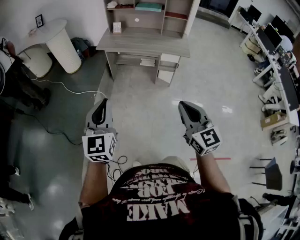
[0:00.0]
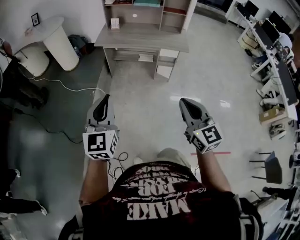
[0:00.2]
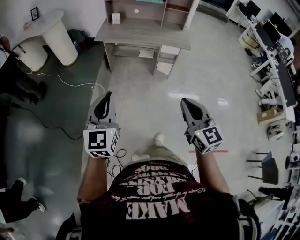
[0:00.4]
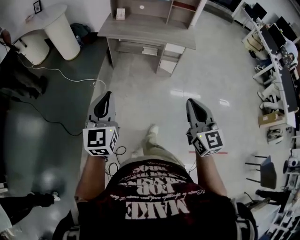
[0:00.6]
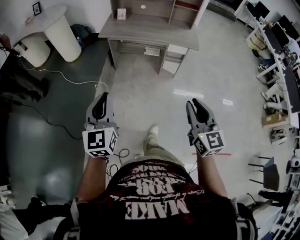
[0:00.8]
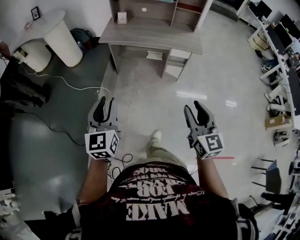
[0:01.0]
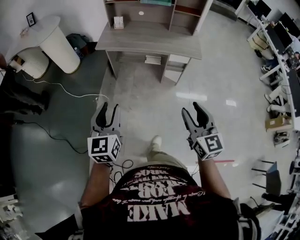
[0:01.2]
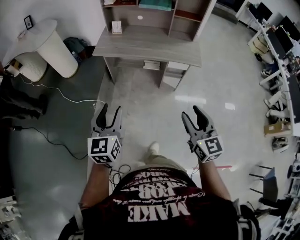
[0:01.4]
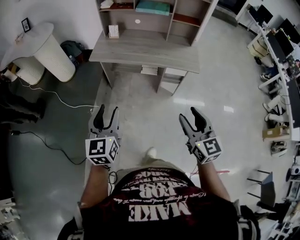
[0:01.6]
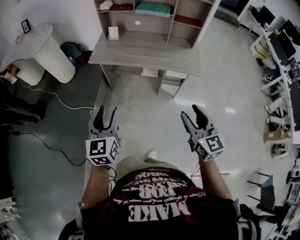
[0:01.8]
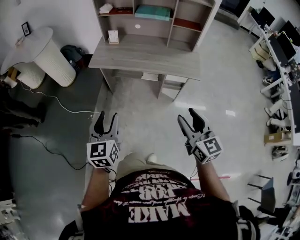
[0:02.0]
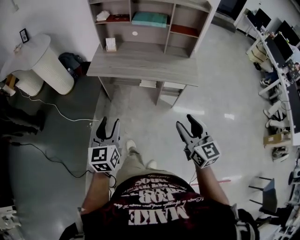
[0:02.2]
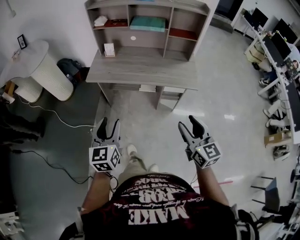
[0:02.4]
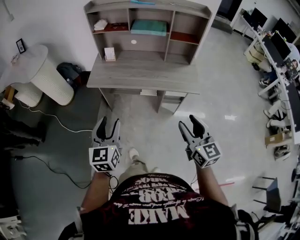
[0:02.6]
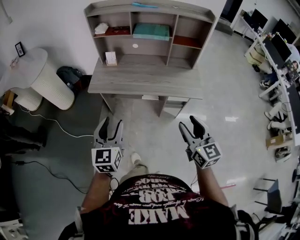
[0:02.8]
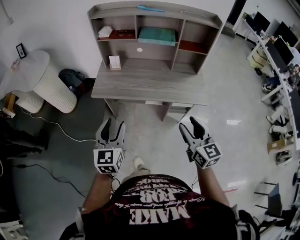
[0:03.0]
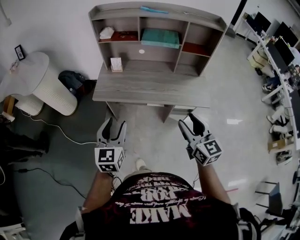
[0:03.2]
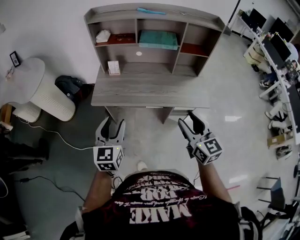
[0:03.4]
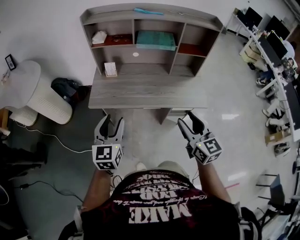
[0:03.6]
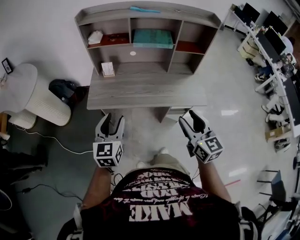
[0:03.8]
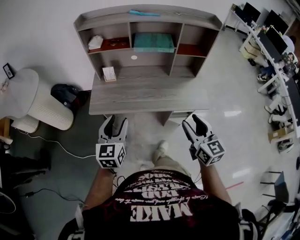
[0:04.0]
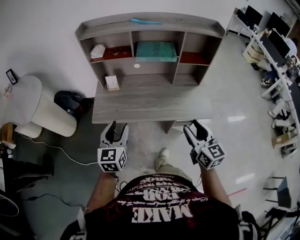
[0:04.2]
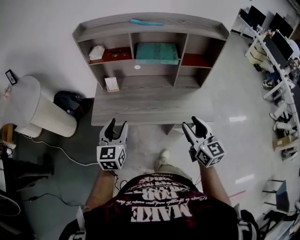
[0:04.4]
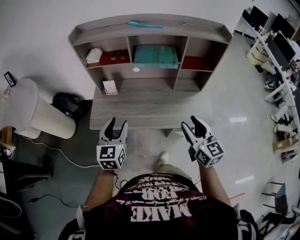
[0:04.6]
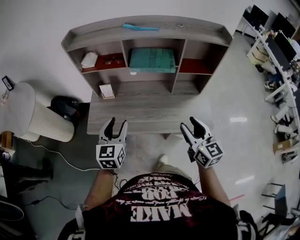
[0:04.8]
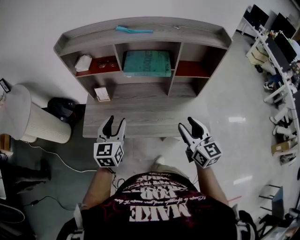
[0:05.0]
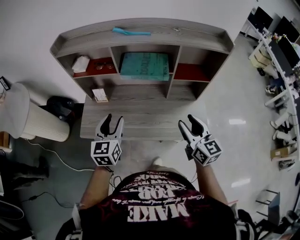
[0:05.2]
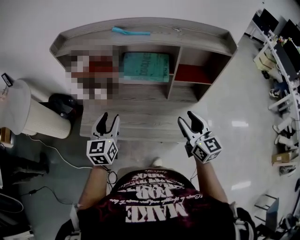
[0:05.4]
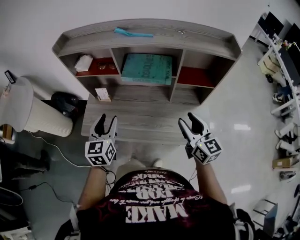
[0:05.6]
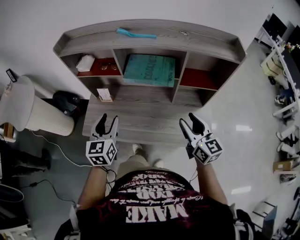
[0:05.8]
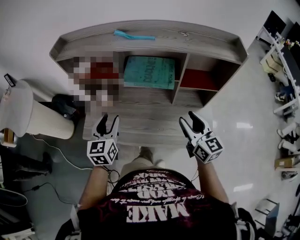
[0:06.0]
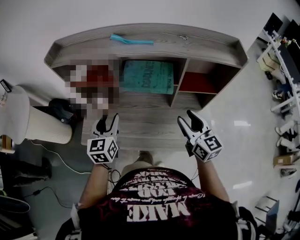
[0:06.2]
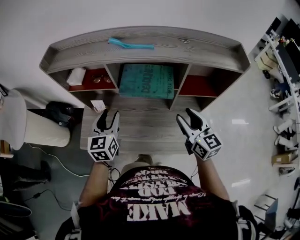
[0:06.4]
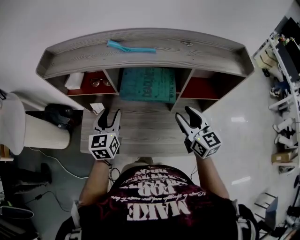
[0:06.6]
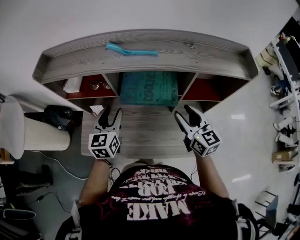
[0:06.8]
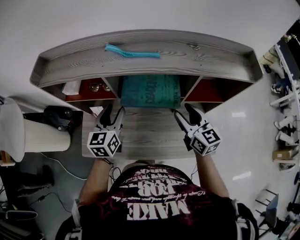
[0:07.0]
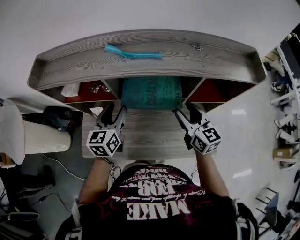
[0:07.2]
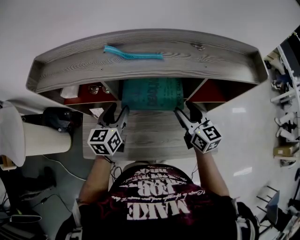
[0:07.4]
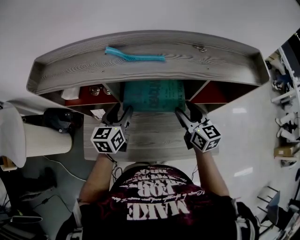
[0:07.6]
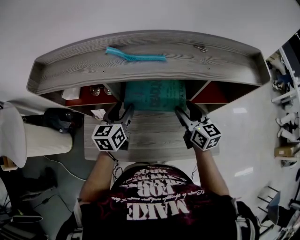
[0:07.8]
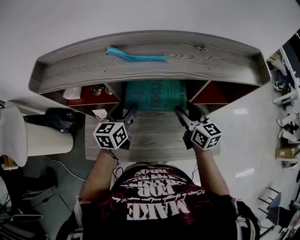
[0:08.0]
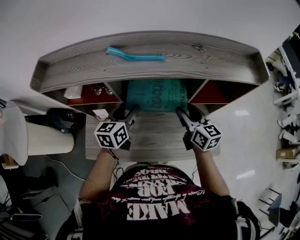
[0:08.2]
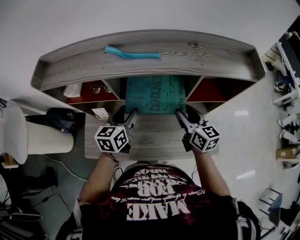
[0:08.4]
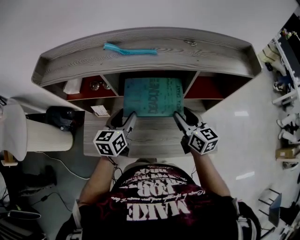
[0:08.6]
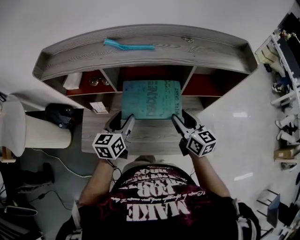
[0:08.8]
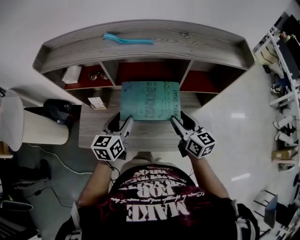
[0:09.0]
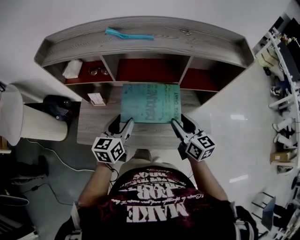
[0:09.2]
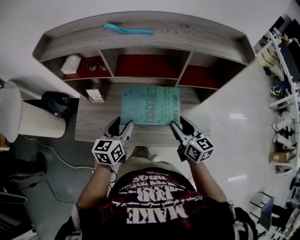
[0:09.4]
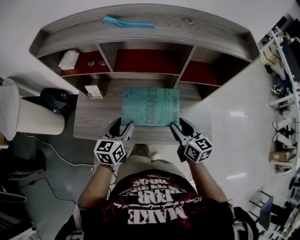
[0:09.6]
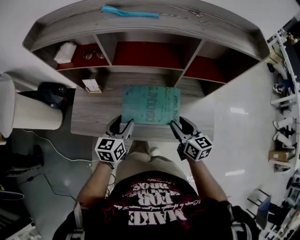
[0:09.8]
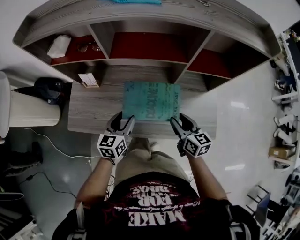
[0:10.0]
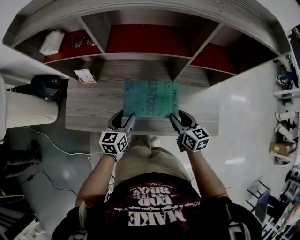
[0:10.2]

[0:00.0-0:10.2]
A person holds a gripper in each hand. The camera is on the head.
0:00.0 to 0:01.4: Both grippers move forward, roughly 20 cm. The left gripper opens its fingers. The right gripper opens its fingers.
0:01.4 to 0:03.0: Both grippers travel together forward, roughly 25 cm.
0:03.0 to 0:04.4: Both grippers travel together forward, roughly 20 cm.
0:04.4 to 0:05.8: Both grippers travel together forward and to the right, approximately 20 cm.
0:05.8 to 0:07.2: The grippers both shift forward by some 20 cm.
0:07.2 to 0:08.8: The grippers both shift backward by about 5 cm.
0:08.8 to 0:10.2: Both grippers travel together downward, about 20 cm.

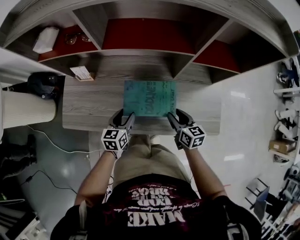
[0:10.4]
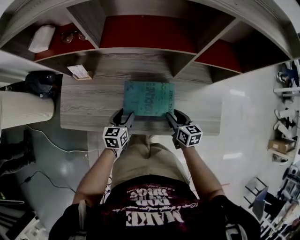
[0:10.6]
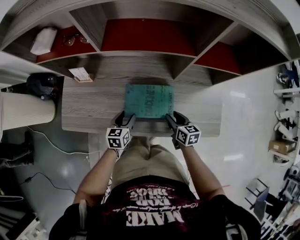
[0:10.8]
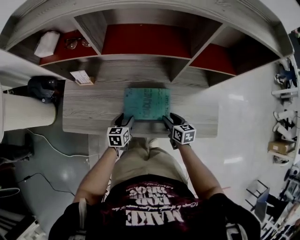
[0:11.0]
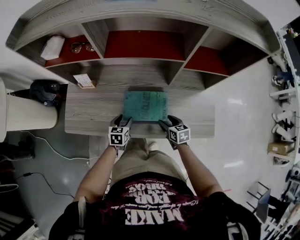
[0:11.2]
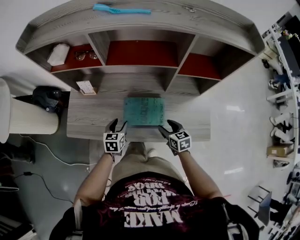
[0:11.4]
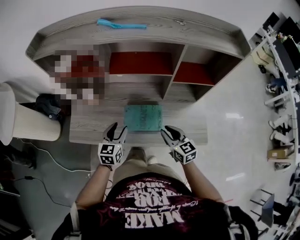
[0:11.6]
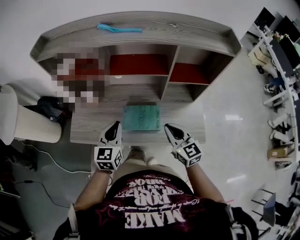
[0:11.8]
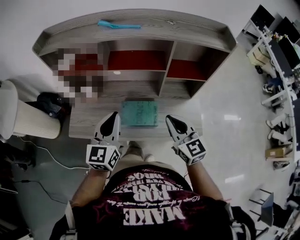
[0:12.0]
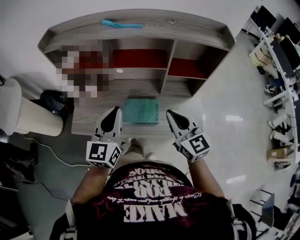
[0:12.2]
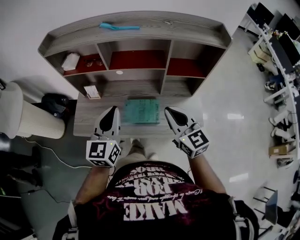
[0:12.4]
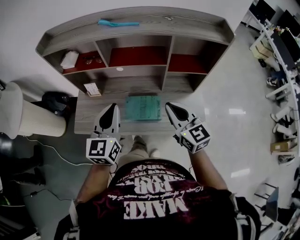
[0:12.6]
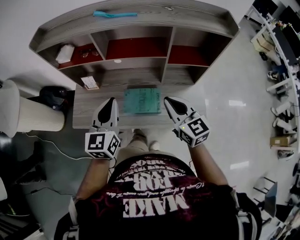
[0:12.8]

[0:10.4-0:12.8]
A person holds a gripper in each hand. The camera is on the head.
0:10.4 to 0:11.6: Both grippers move upward, roughly 10 cm.
0:11.6 to 0:12.8: The grippers both shift upward by approximately 20 cm. The right gripper closes, while the left gripper closes its fingers.

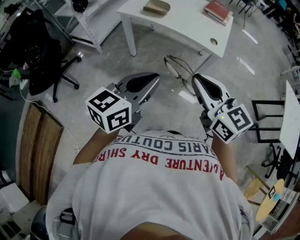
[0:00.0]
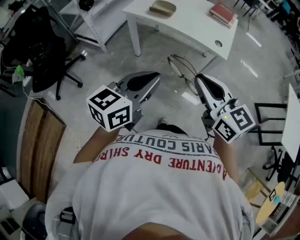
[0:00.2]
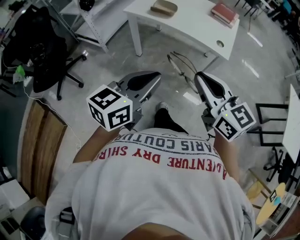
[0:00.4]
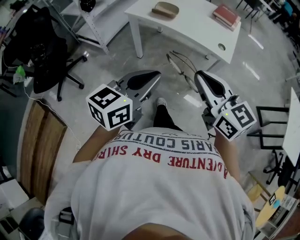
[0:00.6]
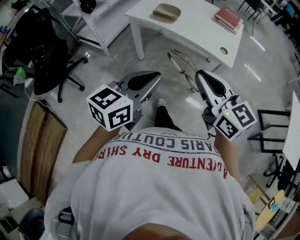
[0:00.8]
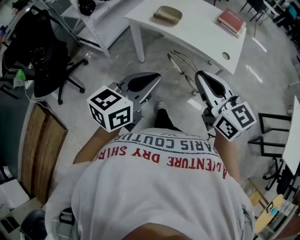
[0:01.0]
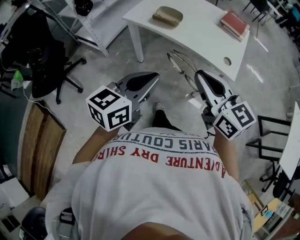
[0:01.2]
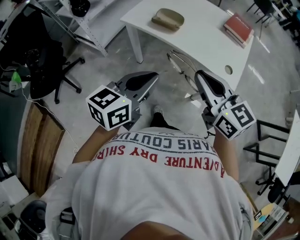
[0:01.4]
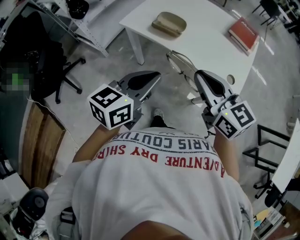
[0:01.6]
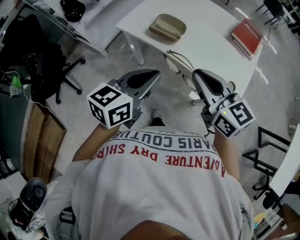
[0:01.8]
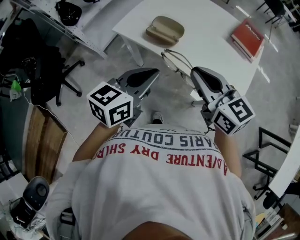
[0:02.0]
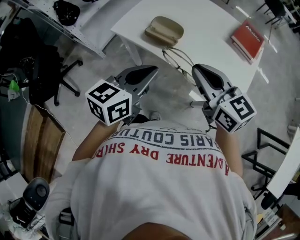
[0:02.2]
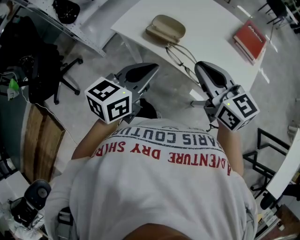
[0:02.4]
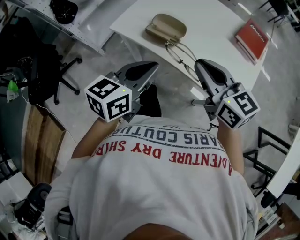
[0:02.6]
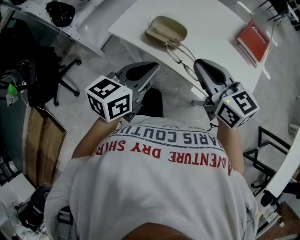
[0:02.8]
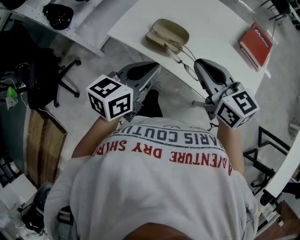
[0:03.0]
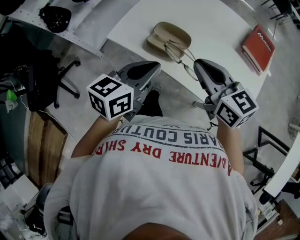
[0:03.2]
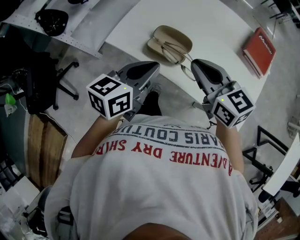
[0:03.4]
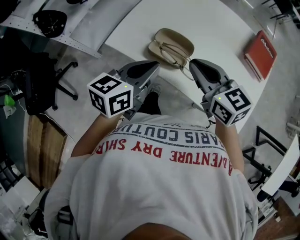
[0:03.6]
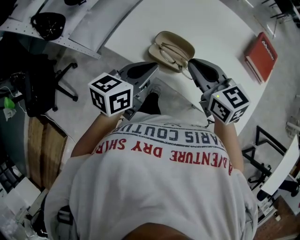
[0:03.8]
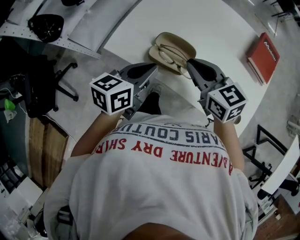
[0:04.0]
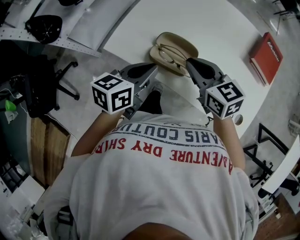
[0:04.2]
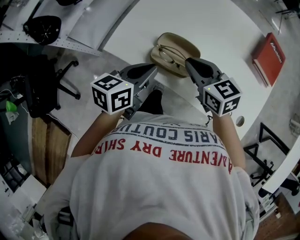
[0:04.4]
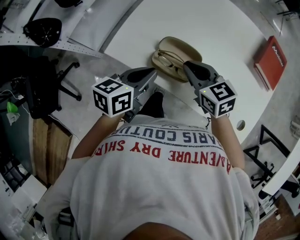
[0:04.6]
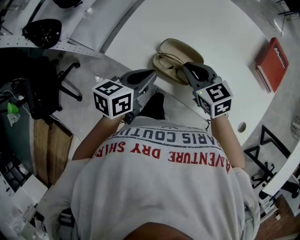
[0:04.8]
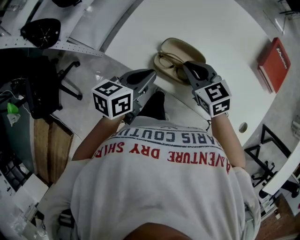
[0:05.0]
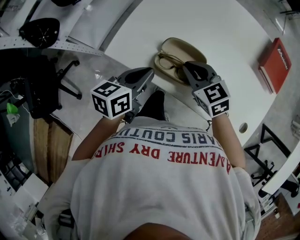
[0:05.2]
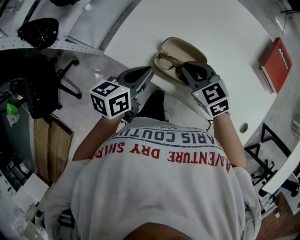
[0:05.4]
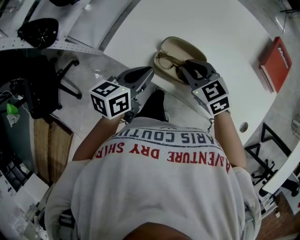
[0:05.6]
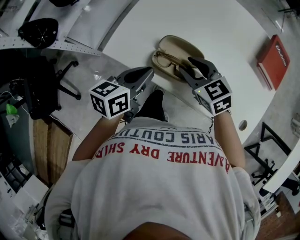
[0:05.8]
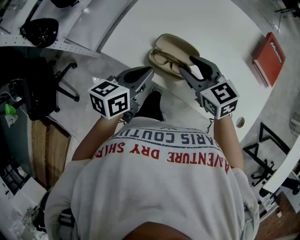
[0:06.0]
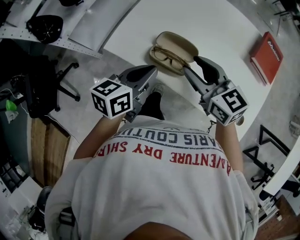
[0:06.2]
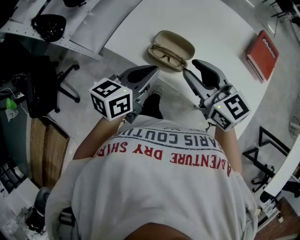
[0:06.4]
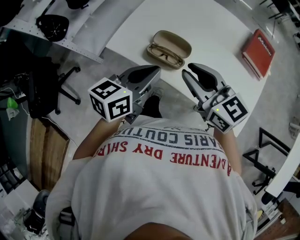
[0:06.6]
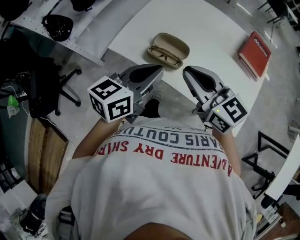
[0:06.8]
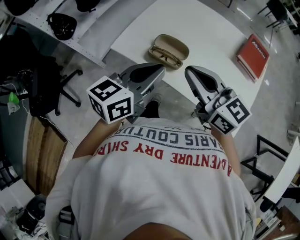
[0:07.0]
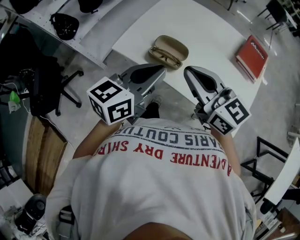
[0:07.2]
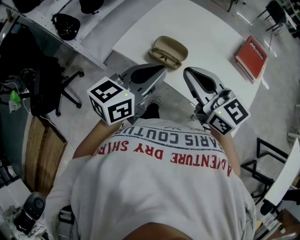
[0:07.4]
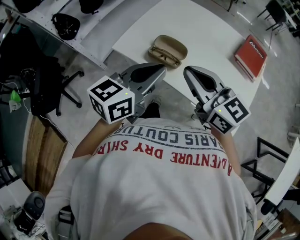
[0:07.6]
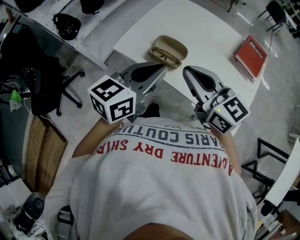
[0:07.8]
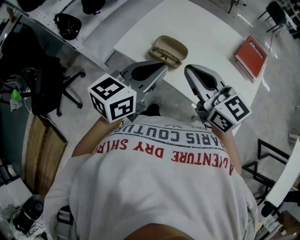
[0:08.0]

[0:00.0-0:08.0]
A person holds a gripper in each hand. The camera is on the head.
0:00.0 to 0:01.6: The two grippers go approximately 25 cm forward.
0:01.6 to 0:03.2: Both grippers move forward, some 20 cm.
0:03.2 to 0:04.8: The grippers both shift downward and forward by about 15 cm.
0:04.8 to 0:06.4: The right gripper is displaced upward and backward by some 15 cm, swivels roughly 20 degrees, and opens its fingers. Meanwhile the left gripper heads upward, covering roughly 5 cm.
0:06.4 to 0:08.0: Both grippers travel together upward and backward, some 15 cm. The right gripper closes up.

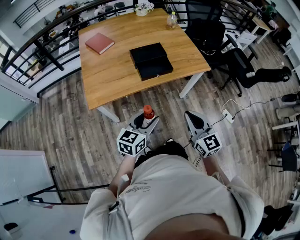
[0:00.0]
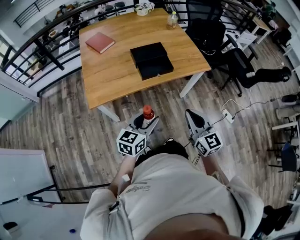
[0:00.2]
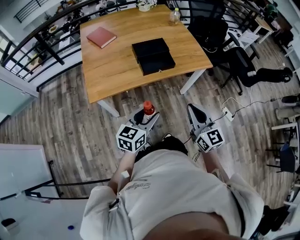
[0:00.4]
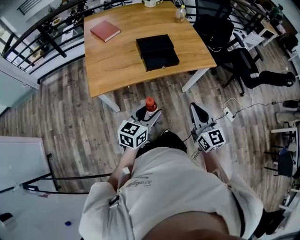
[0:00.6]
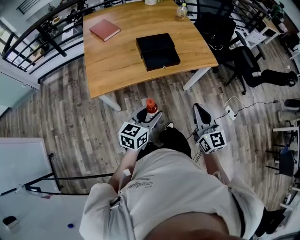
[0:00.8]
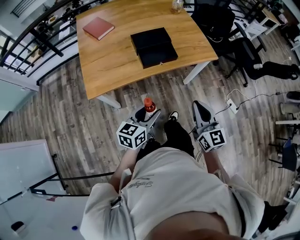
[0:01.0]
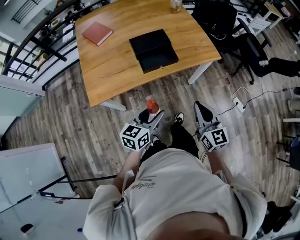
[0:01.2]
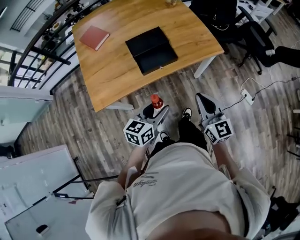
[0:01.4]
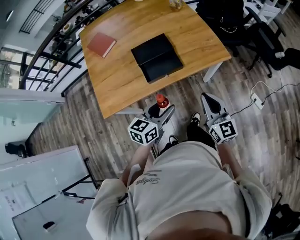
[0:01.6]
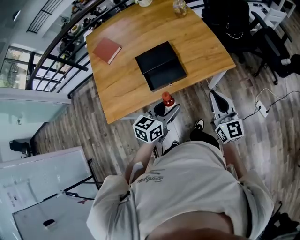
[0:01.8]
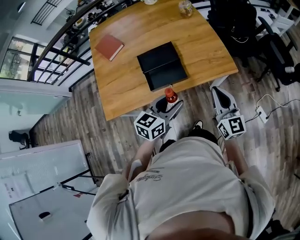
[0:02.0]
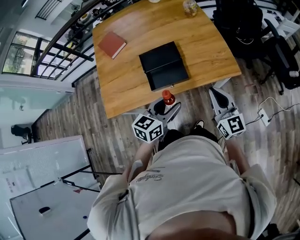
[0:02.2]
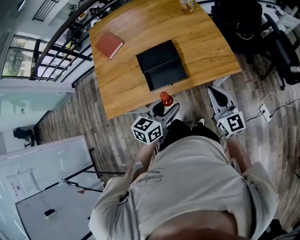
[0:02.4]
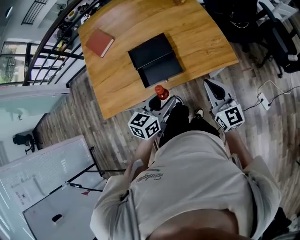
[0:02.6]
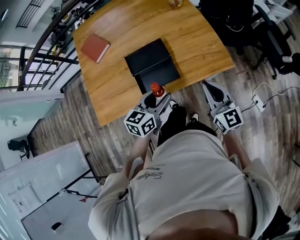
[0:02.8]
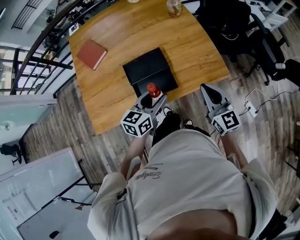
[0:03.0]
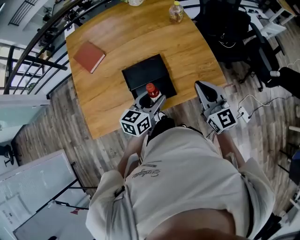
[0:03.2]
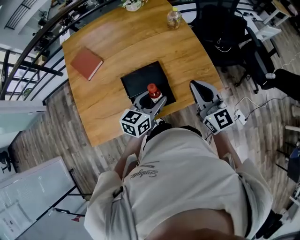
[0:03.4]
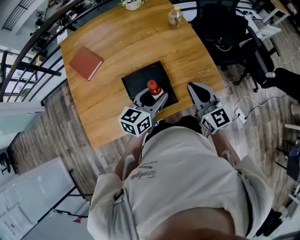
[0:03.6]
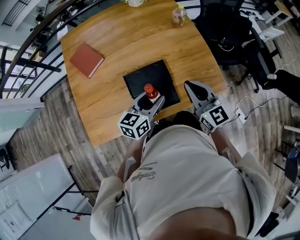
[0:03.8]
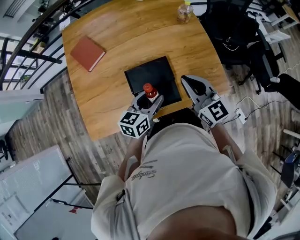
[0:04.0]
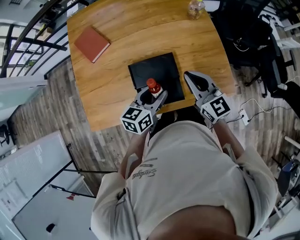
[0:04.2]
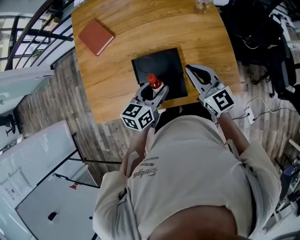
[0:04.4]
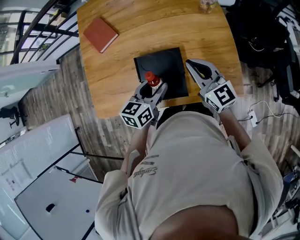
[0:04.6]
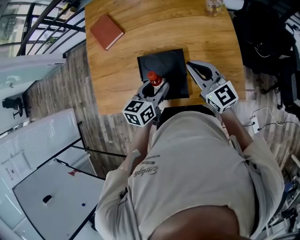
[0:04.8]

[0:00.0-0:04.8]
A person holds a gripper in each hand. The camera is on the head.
0:00.0 to 0:01.6: Both grippers move forward and to the right, approximately 20 cm.
0:01.6 to 0:03.2: The two grippers go about 25 cm forward.
0:03.2 to 0:04.8: The right gripper moves forward and to the left, approximately 15 cm, and changes its angle by some 30 degrees, while the left gripper shifts approximately 10 cm forward, and changes its angle by about 20 degrees.
